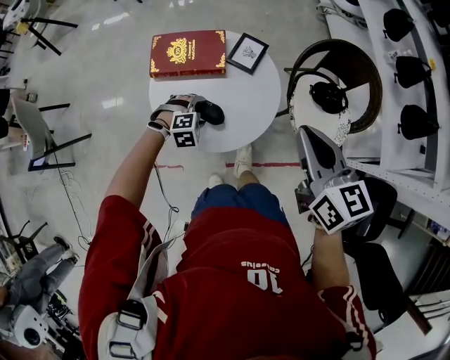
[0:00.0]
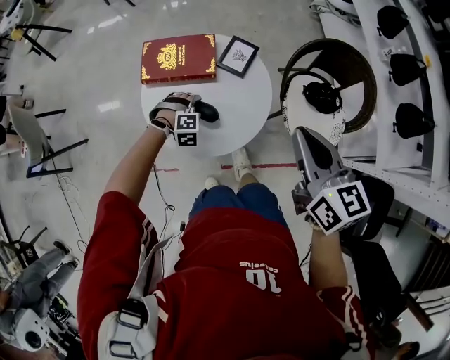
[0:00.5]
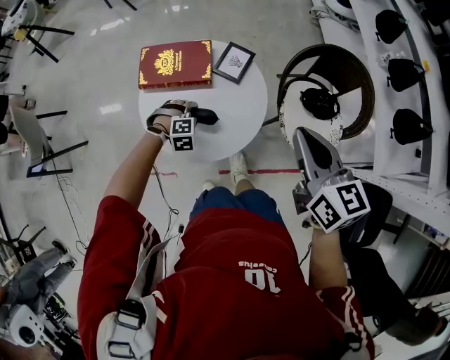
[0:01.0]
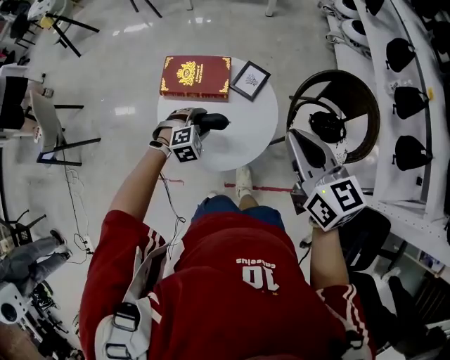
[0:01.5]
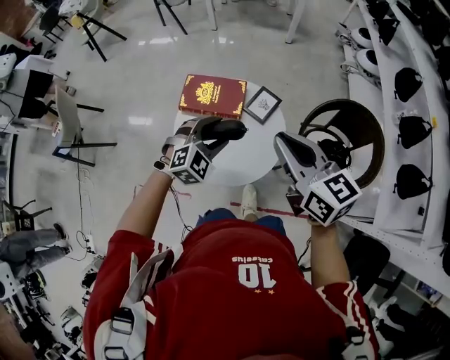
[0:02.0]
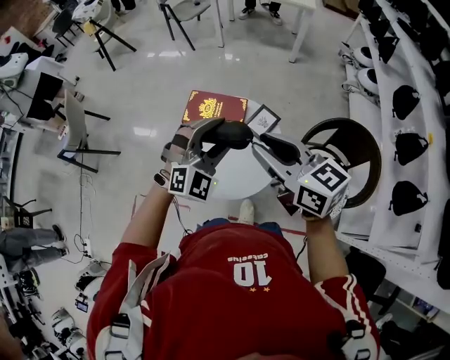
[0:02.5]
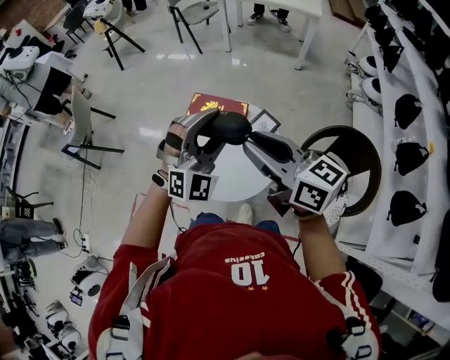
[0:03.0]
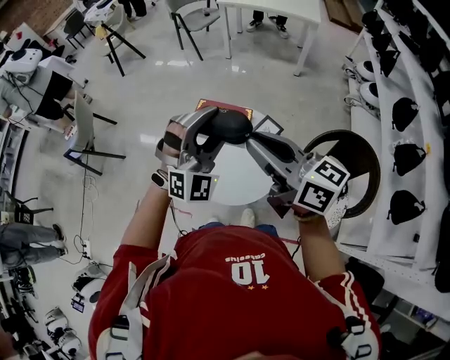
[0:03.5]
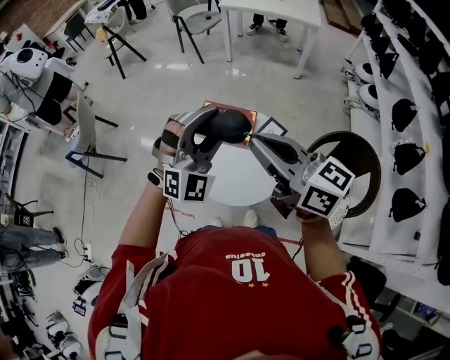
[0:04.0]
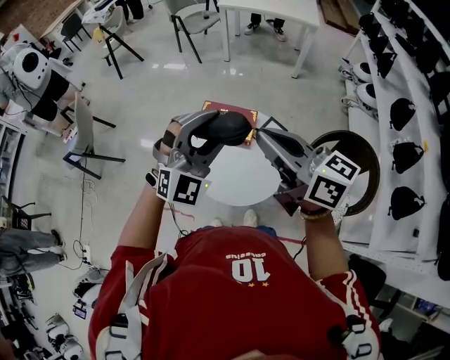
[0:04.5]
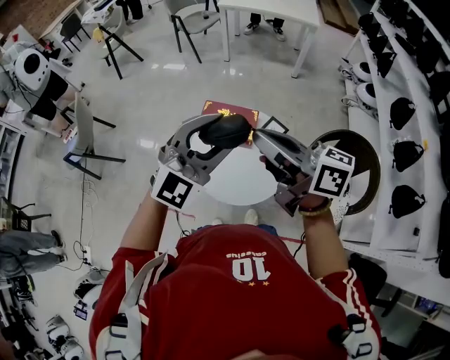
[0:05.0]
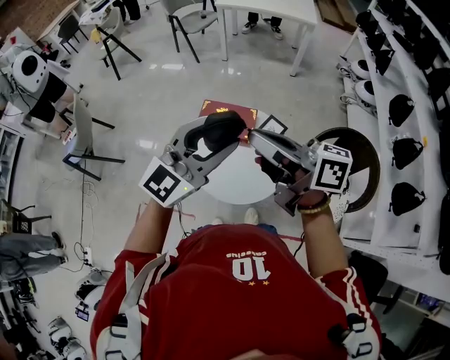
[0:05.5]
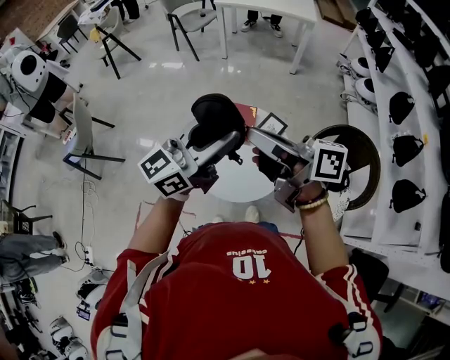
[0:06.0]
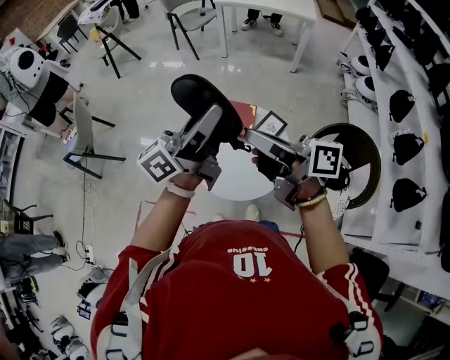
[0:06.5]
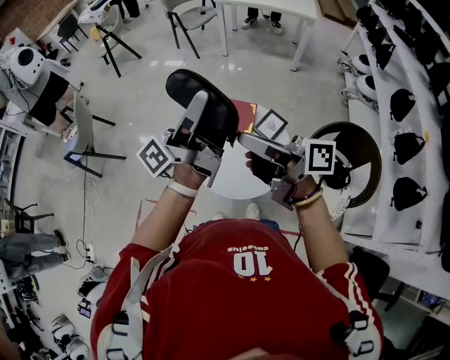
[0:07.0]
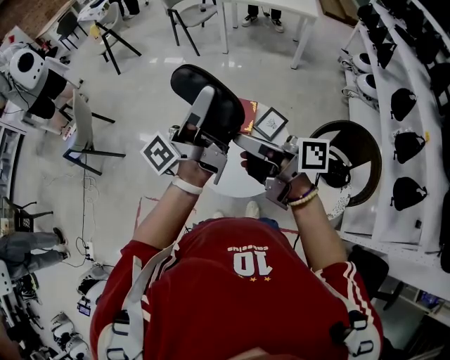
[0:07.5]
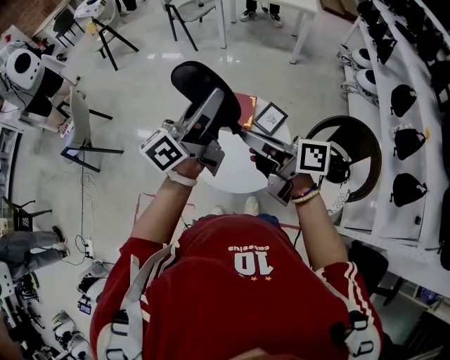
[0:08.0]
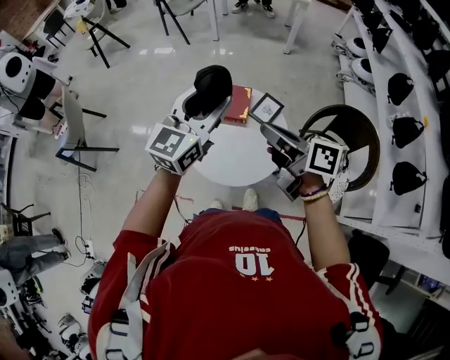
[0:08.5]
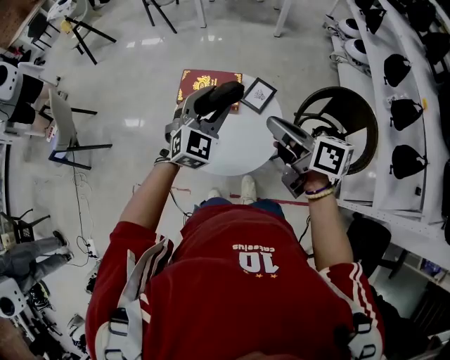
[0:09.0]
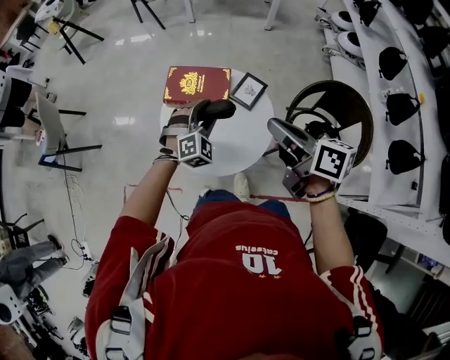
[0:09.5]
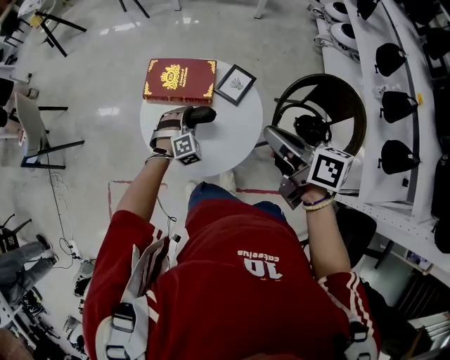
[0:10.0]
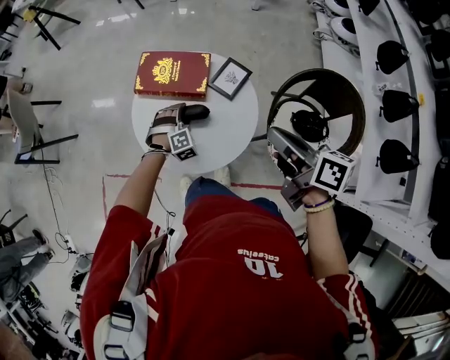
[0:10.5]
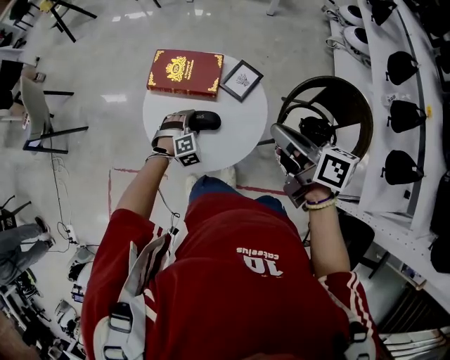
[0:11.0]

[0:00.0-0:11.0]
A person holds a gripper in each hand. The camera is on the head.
0:00.0 to 0:02.0: The right gripper moves upward and forward, roughly 10 cm, and swivels approximately 30 degrees; the left gripper is displaced upward by some 25 cm, and changes its angle by about 40 degrees.
0:02.0 to 0:03.5: The left gripper shifts some 20 cm upward, and points its fingers roughly 30 degrees further upward. The right gripper is displaced upward and to the left by roughly 10 cm, and swivels roughly 30 degrees.
0:03.5 to 0:05.5: The right gripper heads to the left, covering about 5 cm. Meanwhile the left gripper goes some 10 cm upward and to the left, and twists some 50 degrees counterclockwise, seen from behind.
0:05.5 to 0:07.5: The left gripper shifts some 10 cm forward, and rotates around the line of its fingers by about 80 degrees, counterclockwise from behind. The right gripper shifts about 5 cm downward, and turns by some 20 degrees.
0:07.5 to 0:09.0: The left gripper shifts roughly 20 cm downward, and rotates around the line of its fingers by approximately 100 degrees, clockwise from behind; the right gripper moves to the right and downward, approximately 15 cm, and rotates about 30 degrees.
0:09.0 to 0:11.0: The left gripper shifts about 35 cm downward, angles its fingers downward, by approximately 40 degrees, and opens its fingers, while the right gripper goes roughly 10 cm downward and to the right.

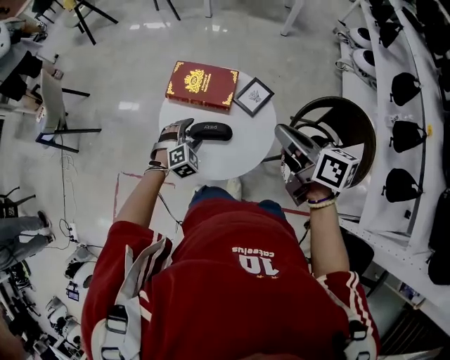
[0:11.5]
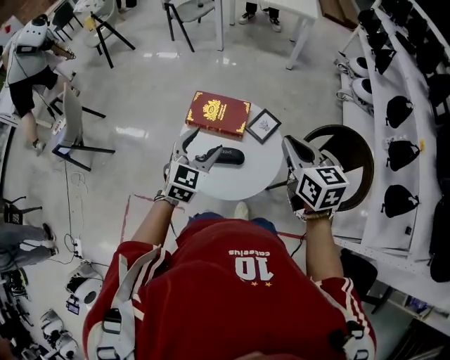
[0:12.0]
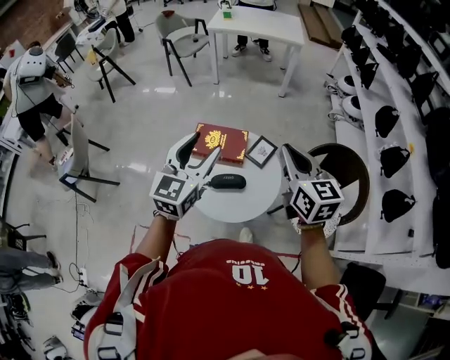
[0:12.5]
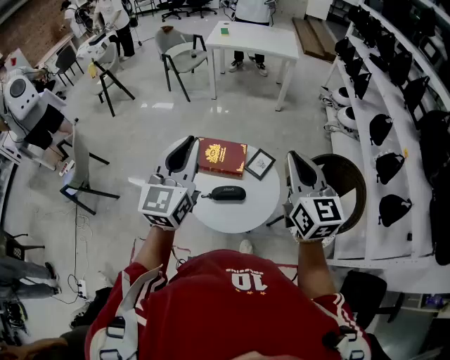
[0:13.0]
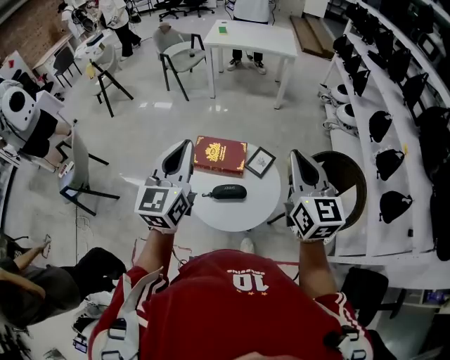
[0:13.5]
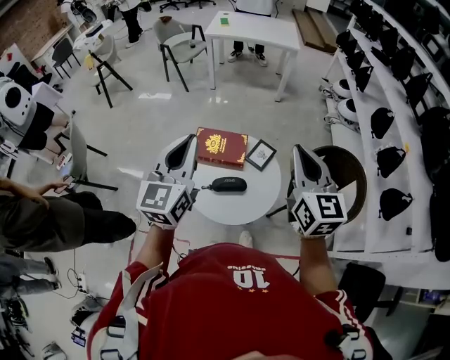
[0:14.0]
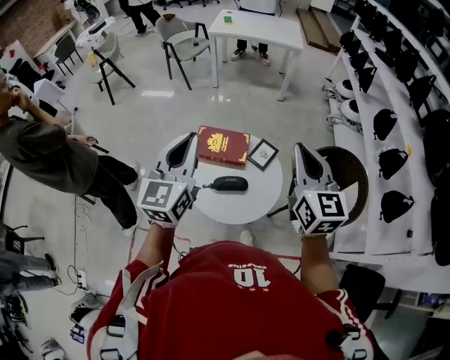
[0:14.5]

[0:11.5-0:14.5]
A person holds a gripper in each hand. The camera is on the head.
0:11.5 to 0:13.0: The left gripper heads upward, covering roughly 50 cm, angles its fingers upward, by approximately 60 degrees, and closes its fingers, while the right gripper goes approximately 20 cm upward, and changes its angle by some 50 degrees.
0:13.0 to 0:14.5: There are only small adjustments of the grippers.

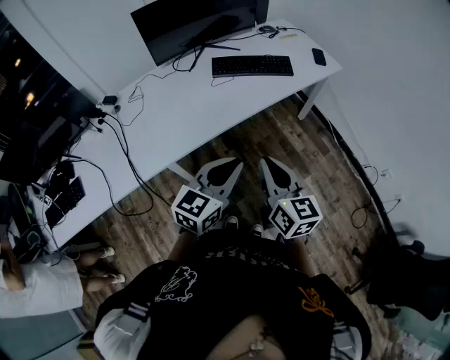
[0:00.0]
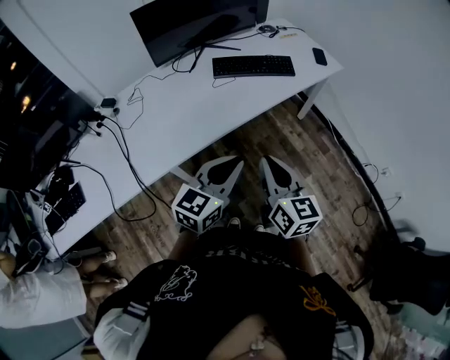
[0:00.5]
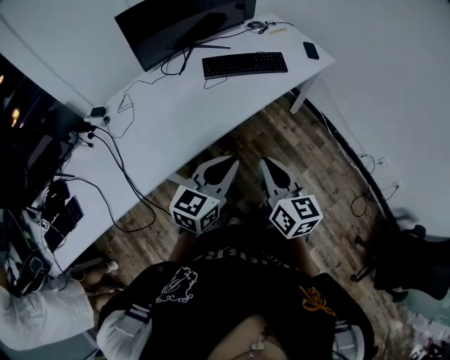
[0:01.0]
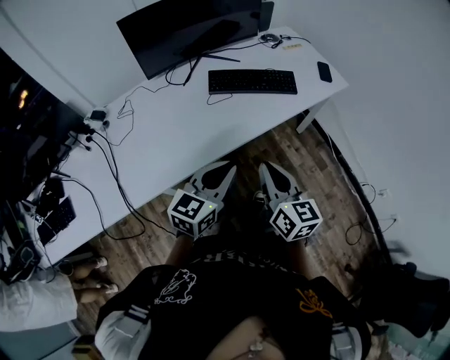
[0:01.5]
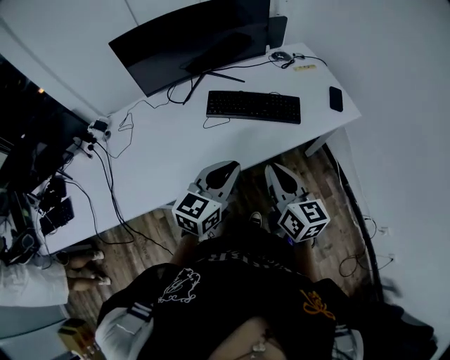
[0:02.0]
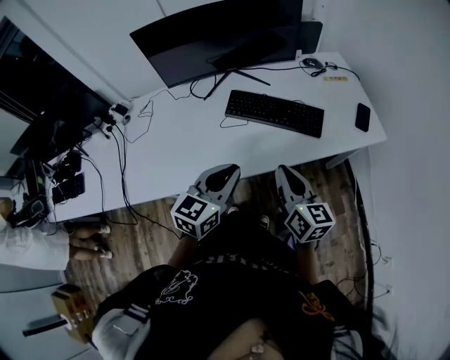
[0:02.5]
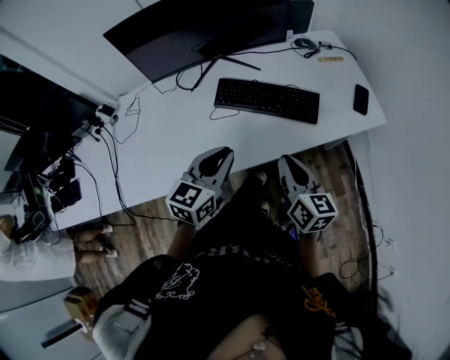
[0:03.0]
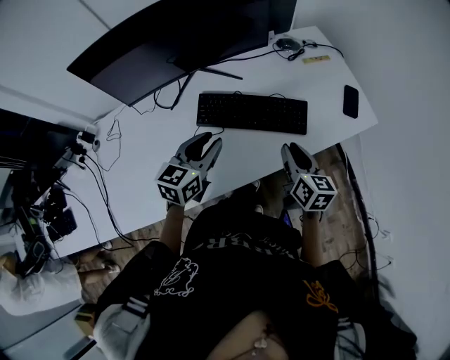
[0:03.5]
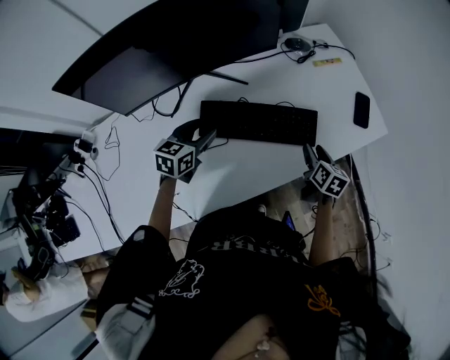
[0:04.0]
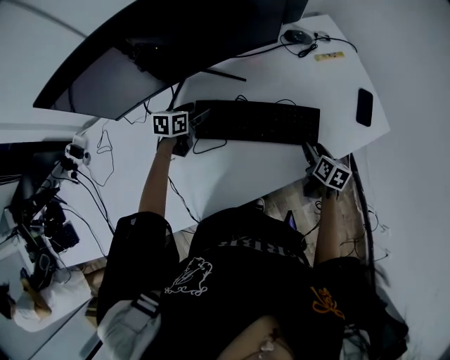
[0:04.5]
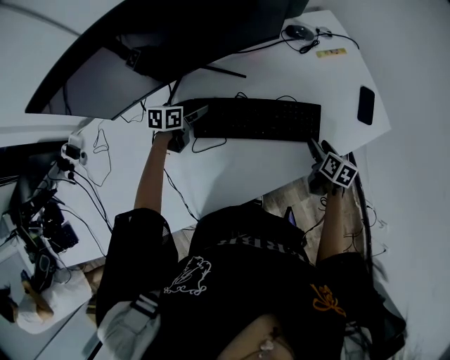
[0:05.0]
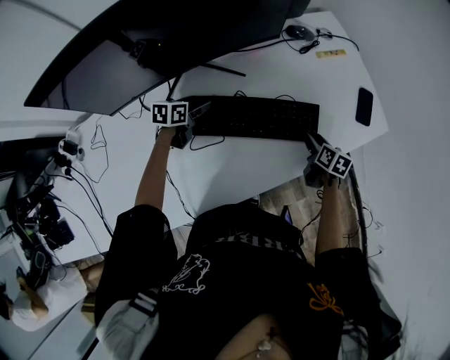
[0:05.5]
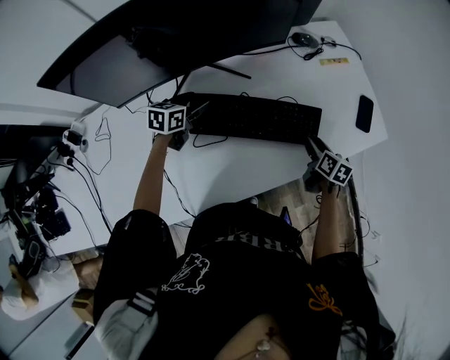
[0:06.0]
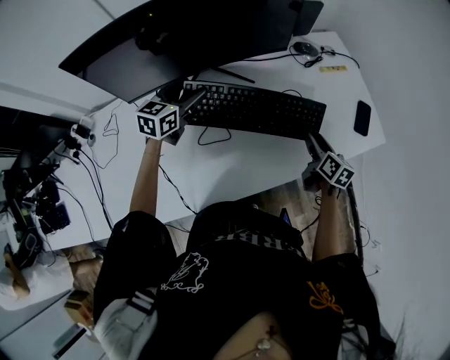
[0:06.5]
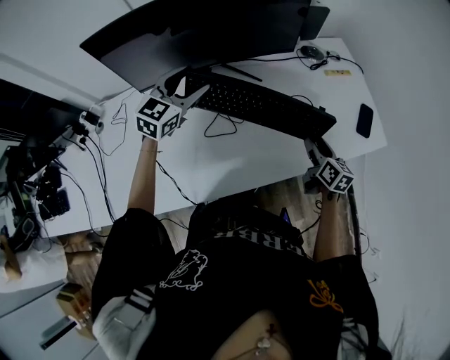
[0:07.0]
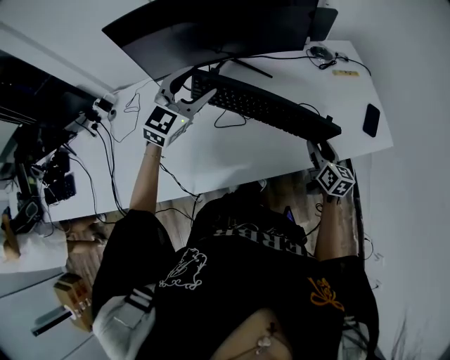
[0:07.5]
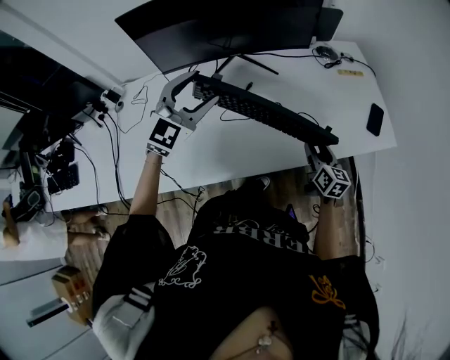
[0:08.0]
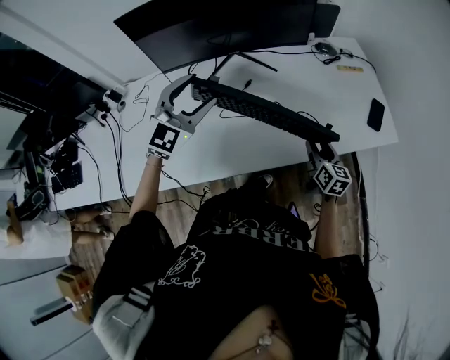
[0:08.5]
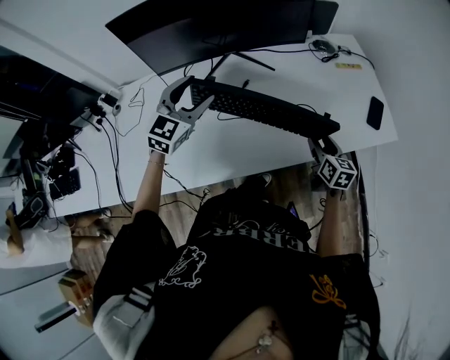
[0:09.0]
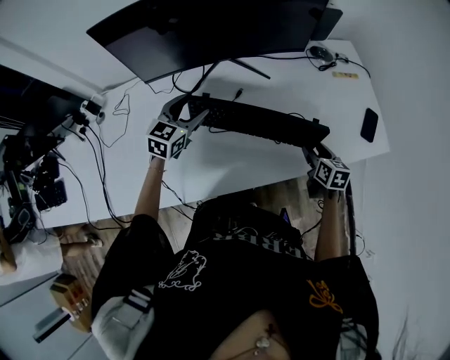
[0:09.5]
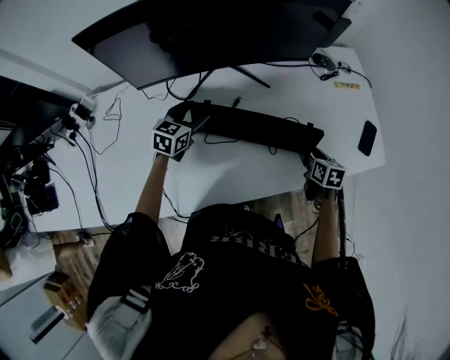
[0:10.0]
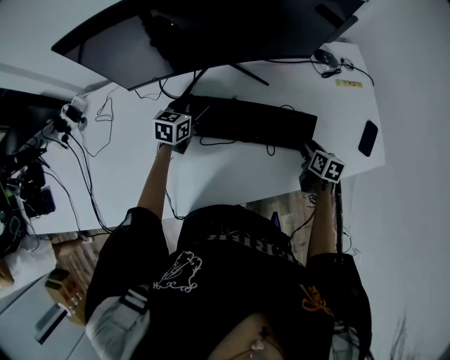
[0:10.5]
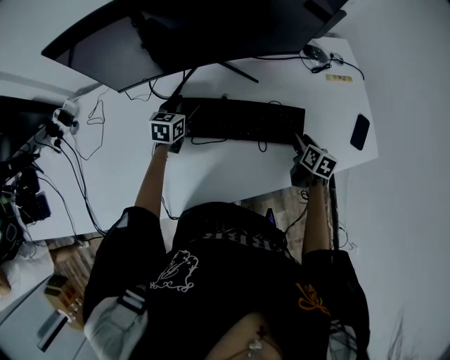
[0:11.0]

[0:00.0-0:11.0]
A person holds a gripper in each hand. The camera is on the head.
0:00.0 to 0:02.0: Both grippers move forward, approximately 30 cm.
0:02.0 to 0:03.5: The right gripper moves forward, downward and to the right, approximately 25 cm, while the left gripper travels forward by about 20 cm.
0:03.5 to 0:05.5: The right gripper moves downward and forward, some 25 cm, swivels about 30 degrees, and opens. Meanwhile the left gripper heads downward, forward and to the left, covering some 35 cm, changes its angle by about 30 degrees, and opens.
0:05.5 to 0:07.5: The left gripper travels upward and backward by roughly 35 cm, and rolls clockwise, seen from behind, by approximately 50 degrees. The right gripper goes approximately 15 cm upward and backward, and rotates about 30 degrees.
0:09.0 to 0:11.0: The right gripper moves forward and downward, some 15 cm, and turns by roughly 20 degrees. Meanwhile the left gripper is displaced downward and forward by approximately 30 cm, and changes its angle by roughly 40 degrees.

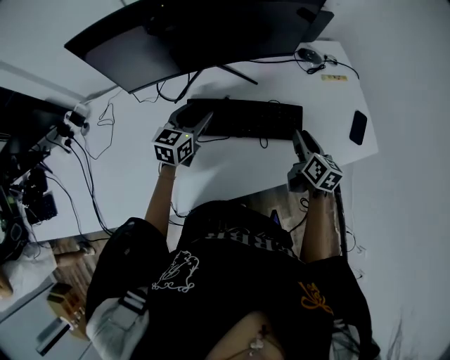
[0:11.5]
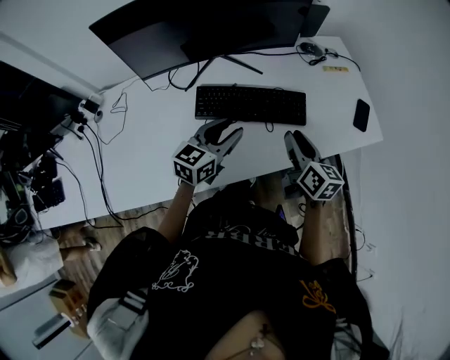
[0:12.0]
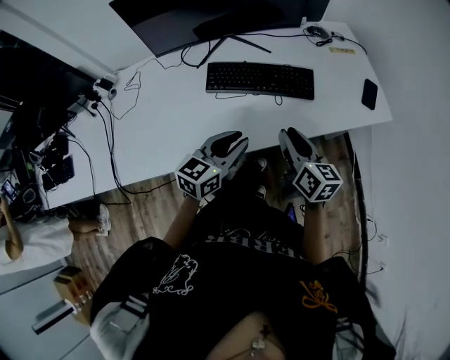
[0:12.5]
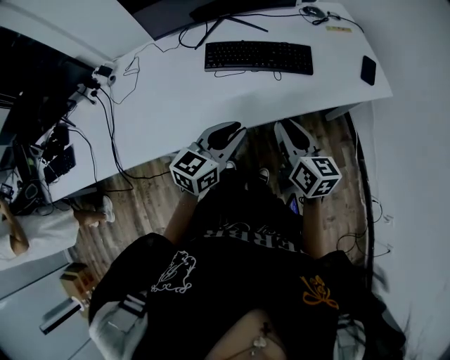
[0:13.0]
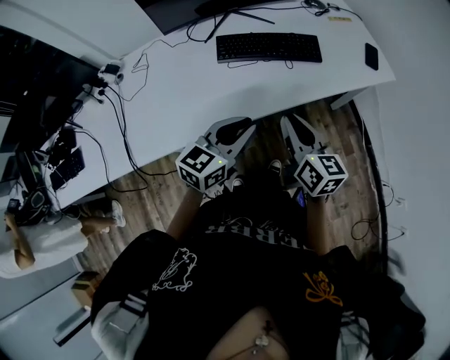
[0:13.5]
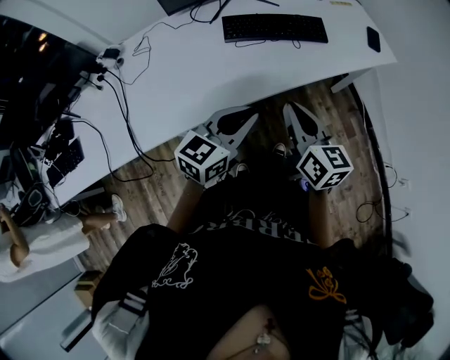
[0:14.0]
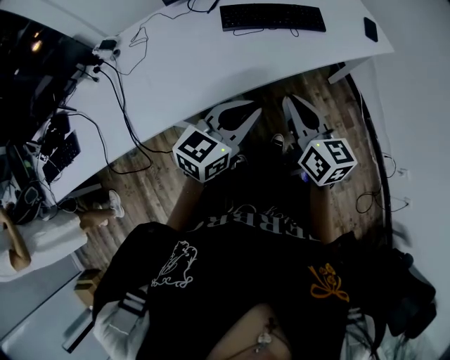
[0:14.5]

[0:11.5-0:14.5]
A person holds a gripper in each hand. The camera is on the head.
0:11.5 to 0:13.0: The two grippers go some 30 cm backward. The left gripper closes up.
0:13.0 to 0:14.5: Both grippers travel together backward and to the left, about 15 cm.
